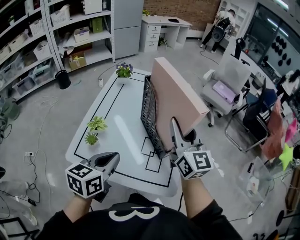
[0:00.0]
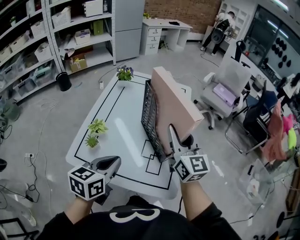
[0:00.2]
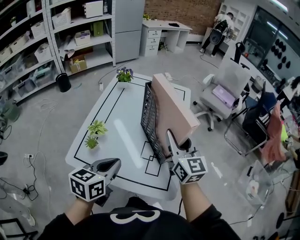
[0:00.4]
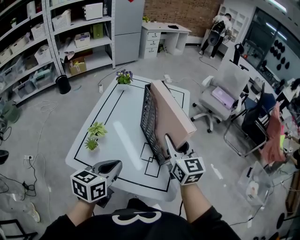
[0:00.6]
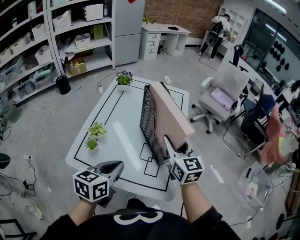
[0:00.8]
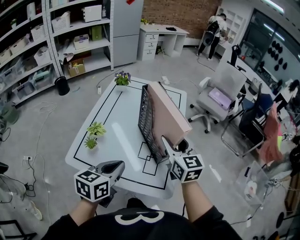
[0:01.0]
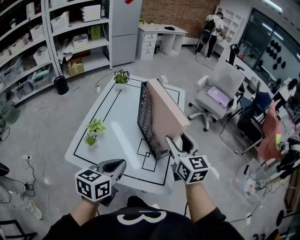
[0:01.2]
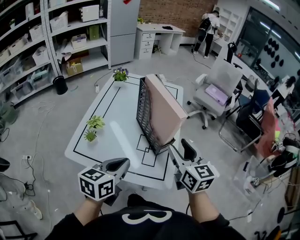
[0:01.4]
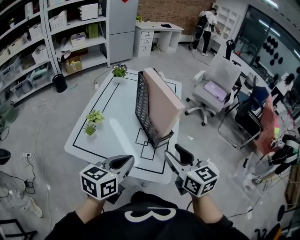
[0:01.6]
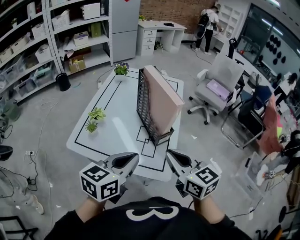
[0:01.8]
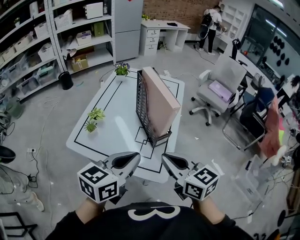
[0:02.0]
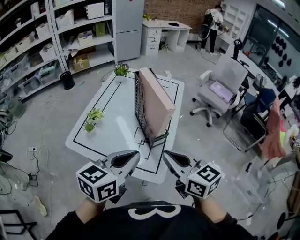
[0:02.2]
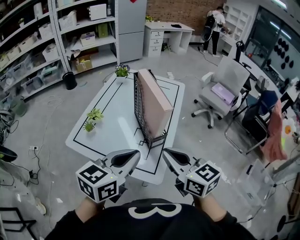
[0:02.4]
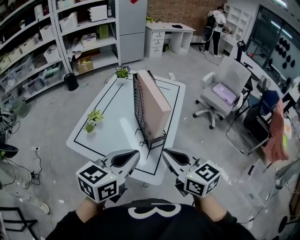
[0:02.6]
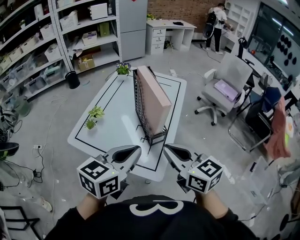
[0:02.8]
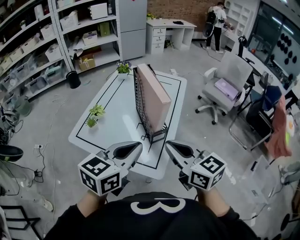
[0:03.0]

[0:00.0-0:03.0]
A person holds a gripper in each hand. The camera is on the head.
0:00.0 to 0:01.6: The left gripper moves to the right and backward, roughly 10 cm; the right gripper travels backward by some 15 cm, rotates roughly 30 degrees, and opens.
0:01.6 to 0:03.0: The left gripper heads to the right and upward, covering some 10 cm, while the right gripper goes about 5 cm upward, and closes its fingers.

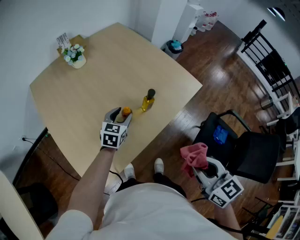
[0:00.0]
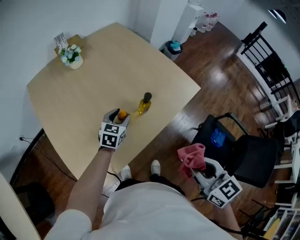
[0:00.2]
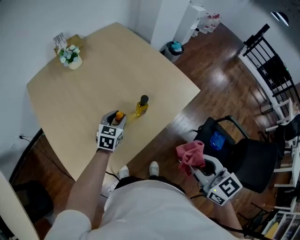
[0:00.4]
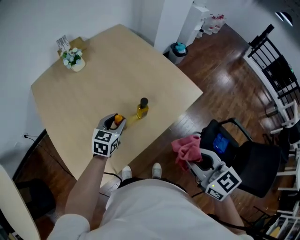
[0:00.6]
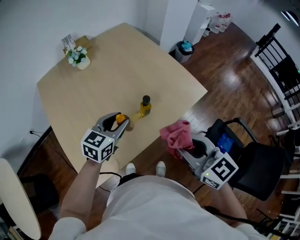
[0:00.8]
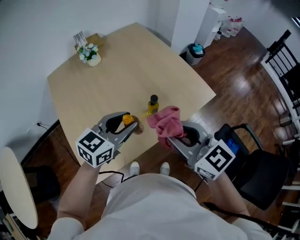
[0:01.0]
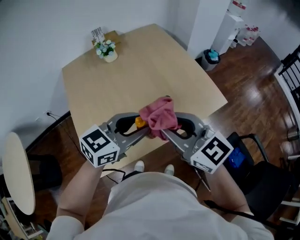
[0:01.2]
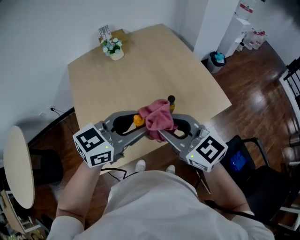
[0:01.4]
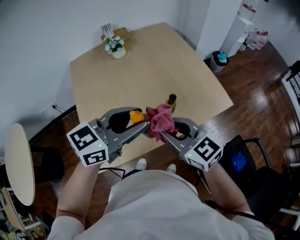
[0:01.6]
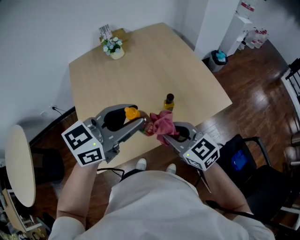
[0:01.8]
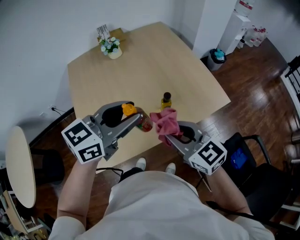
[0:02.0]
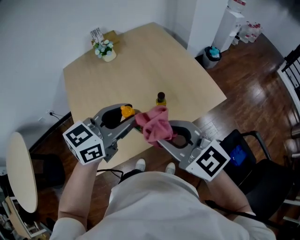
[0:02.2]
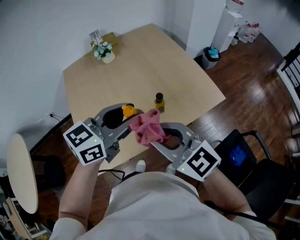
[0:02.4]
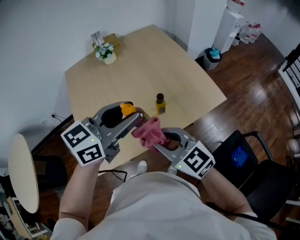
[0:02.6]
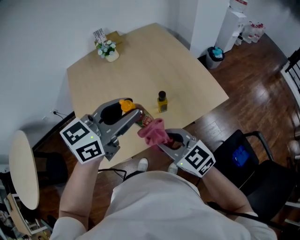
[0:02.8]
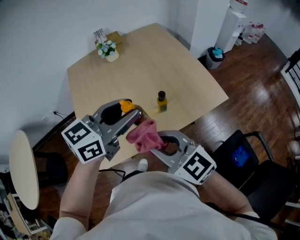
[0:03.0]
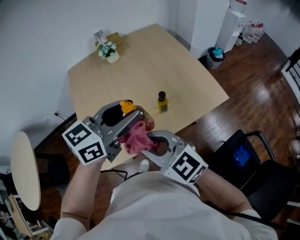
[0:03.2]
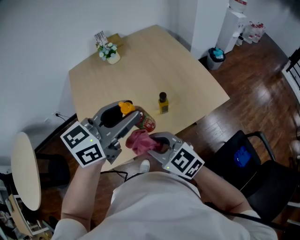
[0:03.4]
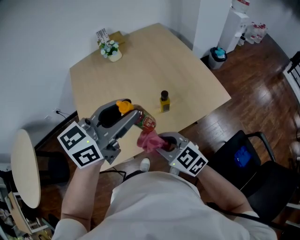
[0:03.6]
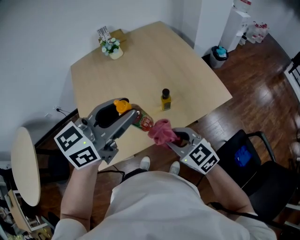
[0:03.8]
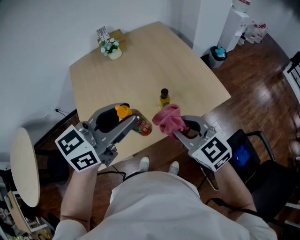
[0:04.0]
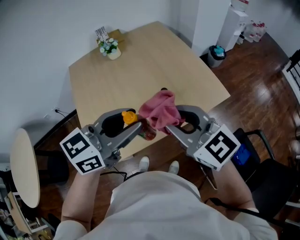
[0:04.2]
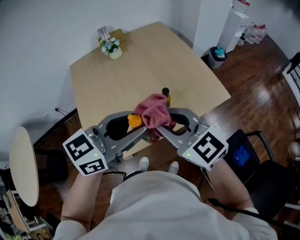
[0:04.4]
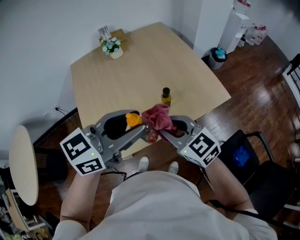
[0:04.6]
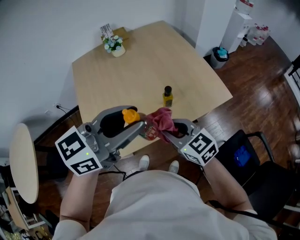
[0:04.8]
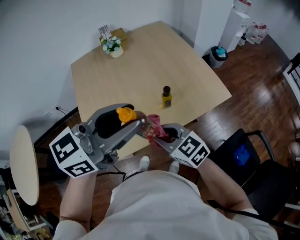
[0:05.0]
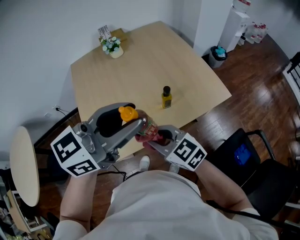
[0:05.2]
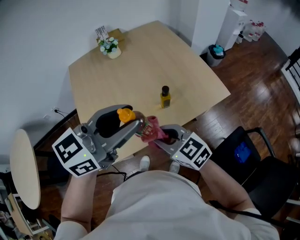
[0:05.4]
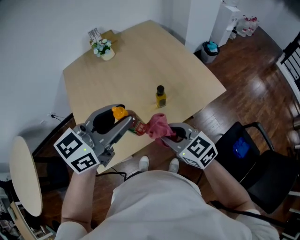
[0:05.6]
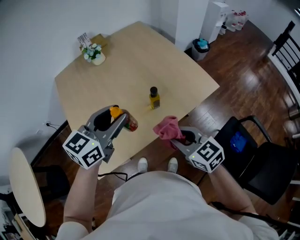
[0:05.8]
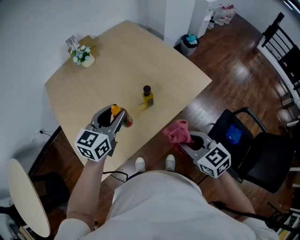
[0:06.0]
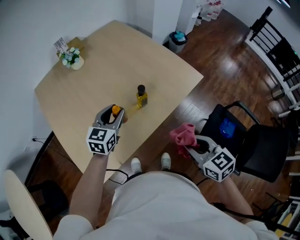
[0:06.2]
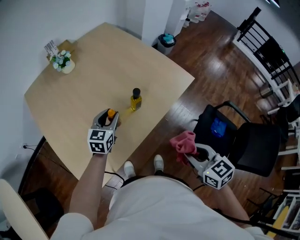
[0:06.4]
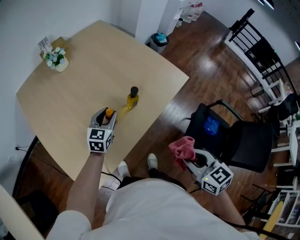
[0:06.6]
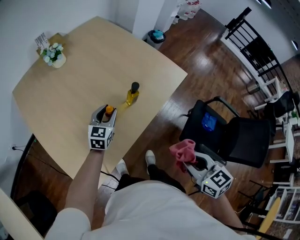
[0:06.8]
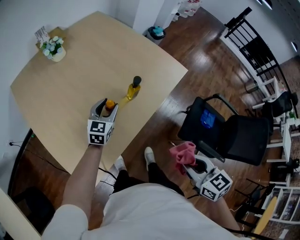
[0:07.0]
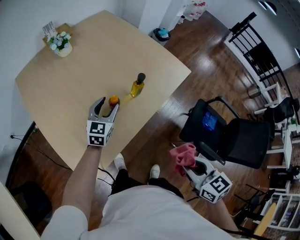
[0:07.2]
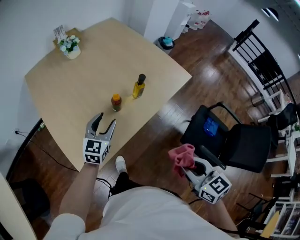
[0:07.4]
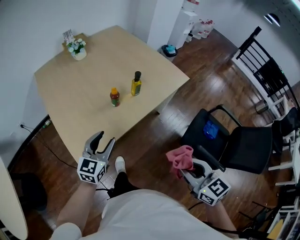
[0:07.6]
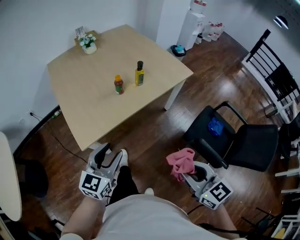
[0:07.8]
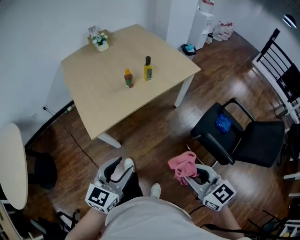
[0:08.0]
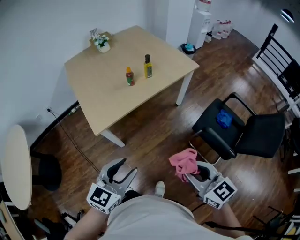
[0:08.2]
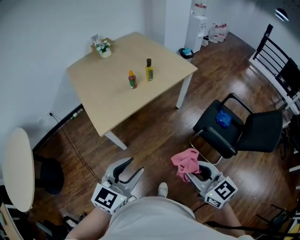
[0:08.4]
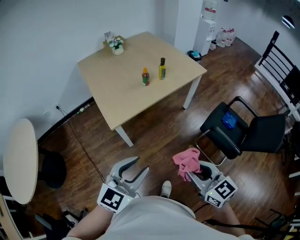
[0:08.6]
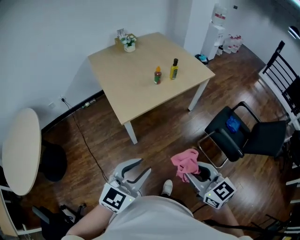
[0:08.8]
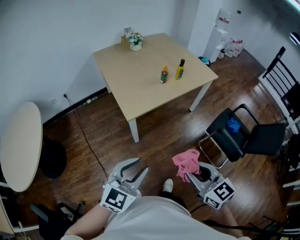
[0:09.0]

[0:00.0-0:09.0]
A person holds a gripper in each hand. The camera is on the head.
0:00.0 to 0:01.6: The left gripper moves upward and backward, approximately 30 cm, and turns by roughly 20 degrees. Meanwhile the right gripper goes about 20 cm forward and to the left, and turns by approximately 40 degrees.
0:01.6 to 0:03.0: The right gripper goes up and down, approximately 10 cm each way, reversing 3 times.
0:03.0 to 0:04.4: The left gripper travels backward by roughly 5 cm. Meanwhile the right gripper moves about 10 cm downward and comes back.
0:04.4 to 0:06.0: The right gripper is displaced downward and to the right by some 15 cm, and changes its angle by approximately 30 degrees; the left gripper shifts approximately 20 cm downward, forward and to the left.
0:06.0 to 0:07.6: Both grippers move backward, some 20 cm.
0:07.6 to 0:09.0: The right gripper shifts roughly 35 cm backward and to the left; the left gripper heads backward, covering some 40 cm.

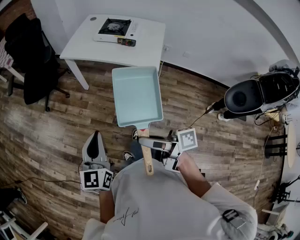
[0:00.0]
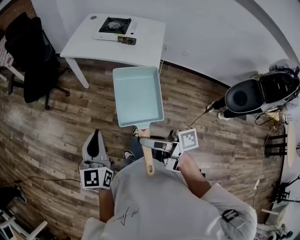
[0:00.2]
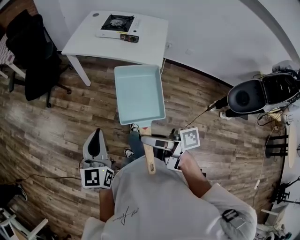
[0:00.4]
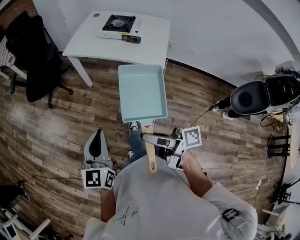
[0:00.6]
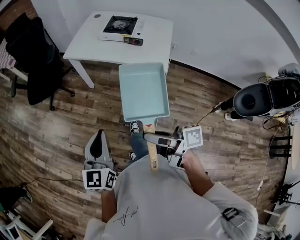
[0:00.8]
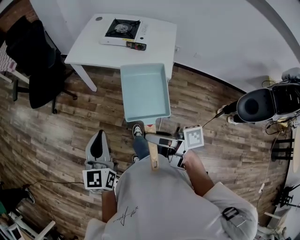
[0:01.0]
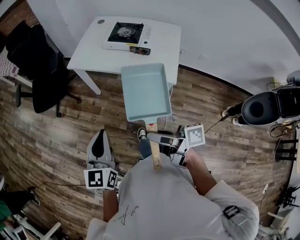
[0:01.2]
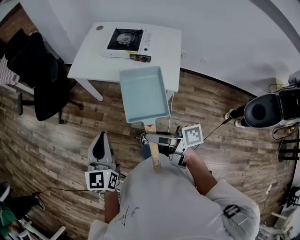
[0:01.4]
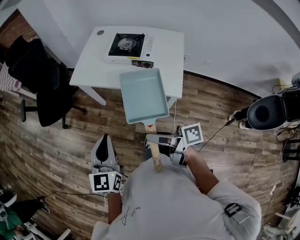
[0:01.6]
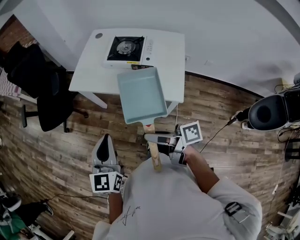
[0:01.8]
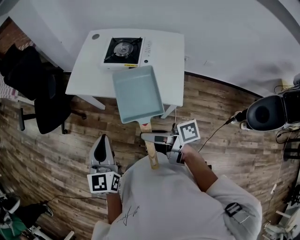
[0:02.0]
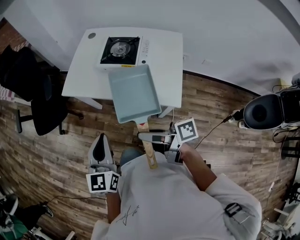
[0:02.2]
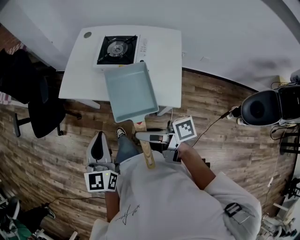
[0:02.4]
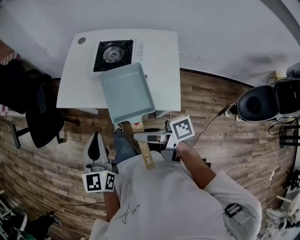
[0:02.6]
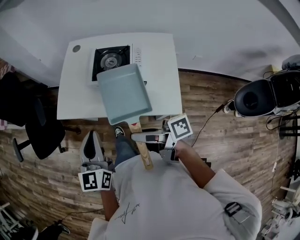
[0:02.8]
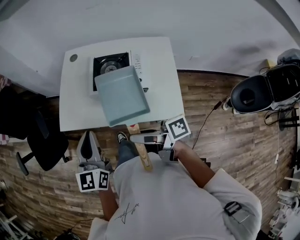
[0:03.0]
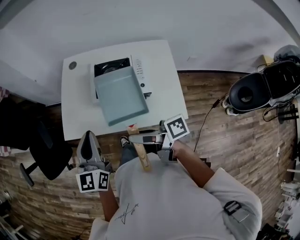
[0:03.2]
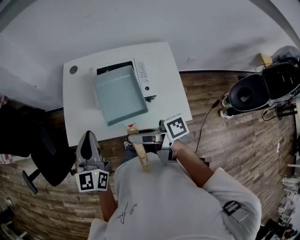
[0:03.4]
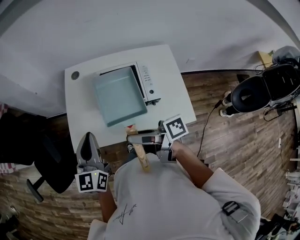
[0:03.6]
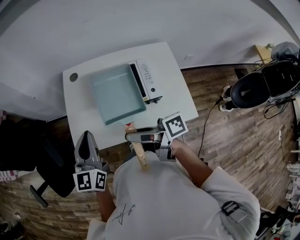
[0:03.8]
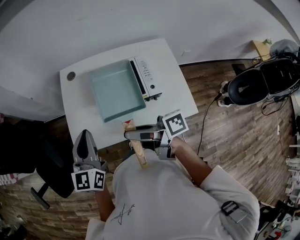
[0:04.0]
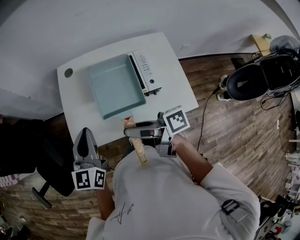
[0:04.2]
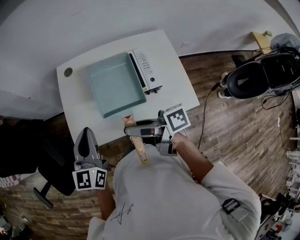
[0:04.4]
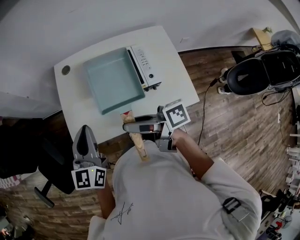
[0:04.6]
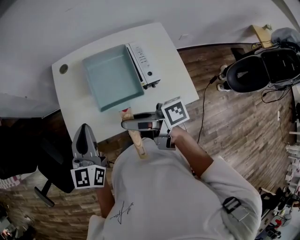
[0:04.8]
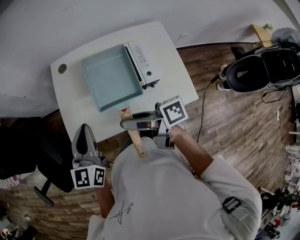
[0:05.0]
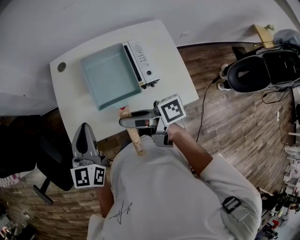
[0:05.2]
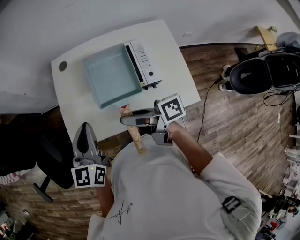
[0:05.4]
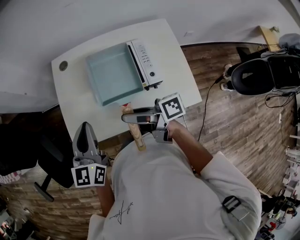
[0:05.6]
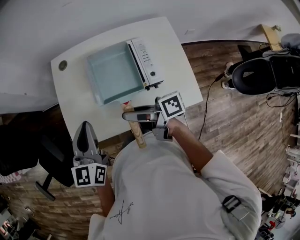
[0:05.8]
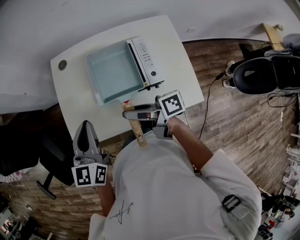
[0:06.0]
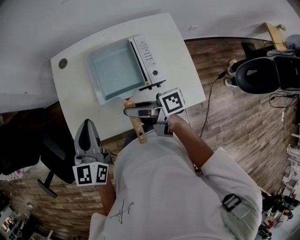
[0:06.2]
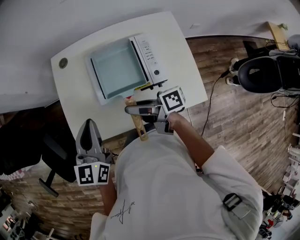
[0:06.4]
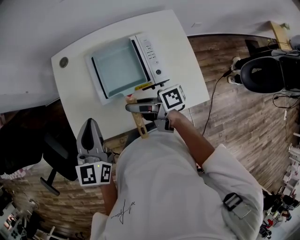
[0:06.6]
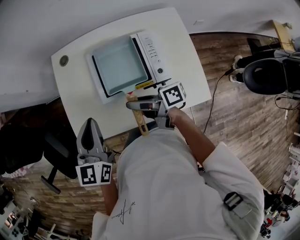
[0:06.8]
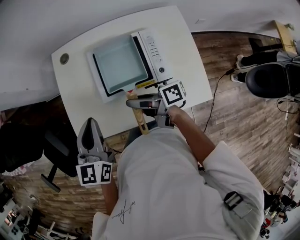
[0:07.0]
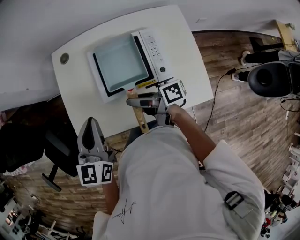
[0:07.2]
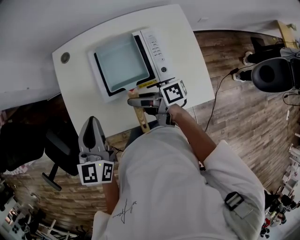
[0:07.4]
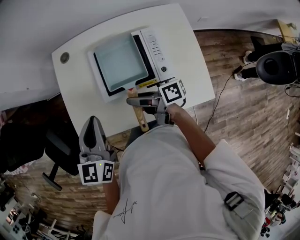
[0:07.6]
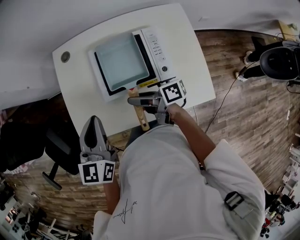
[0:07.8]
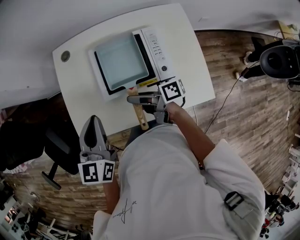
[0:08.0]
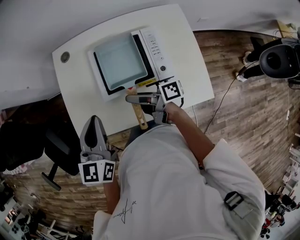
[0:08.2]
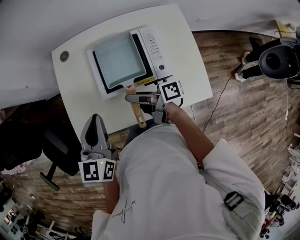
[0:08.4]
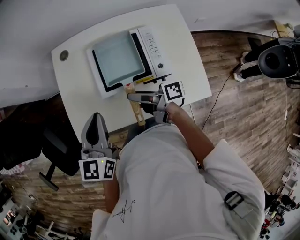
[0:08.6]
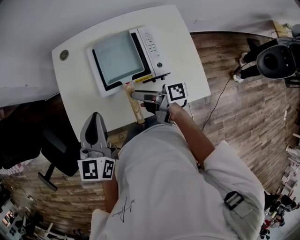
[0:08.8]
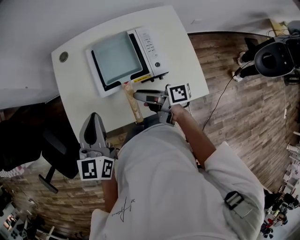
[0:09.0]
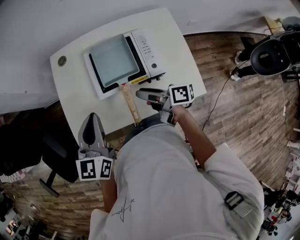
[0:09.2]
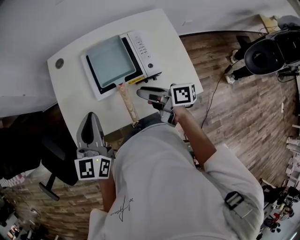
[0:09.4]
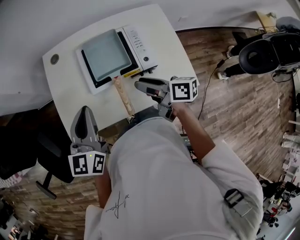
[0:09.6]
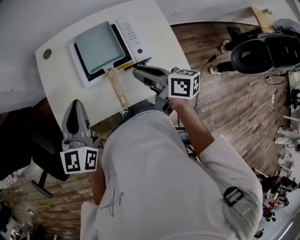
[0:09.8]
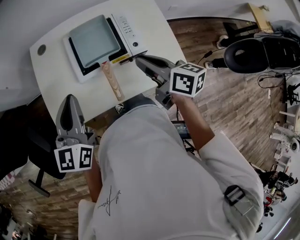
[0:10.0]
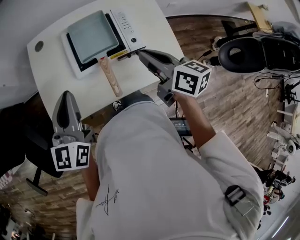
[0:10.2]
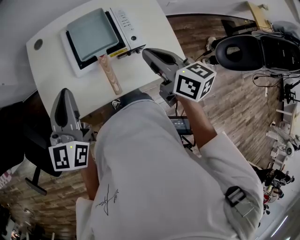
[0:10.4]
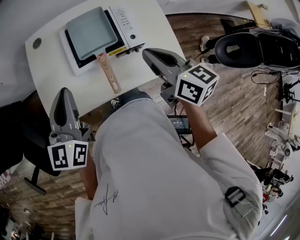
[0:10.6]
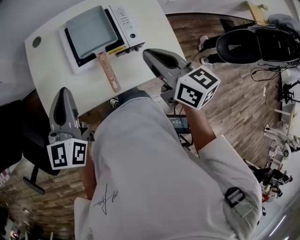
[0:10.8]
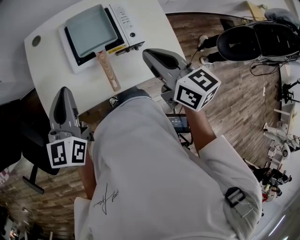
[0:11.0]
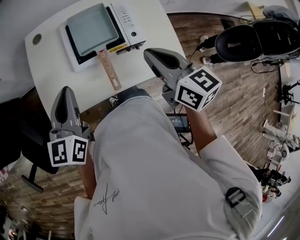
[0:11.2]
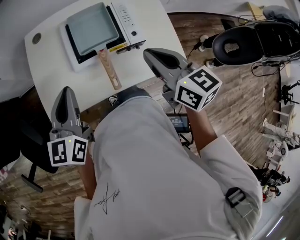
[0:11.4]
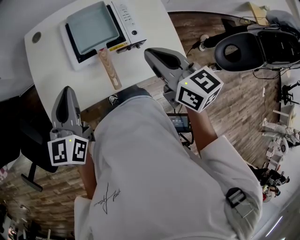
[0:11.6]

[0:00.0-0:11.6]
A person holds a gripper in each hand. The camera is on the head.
0:00.0 to 0:01.4: Both grippers travel together forward, some 20 cm.
0:01.4 to 0:02.8: The left gripper goes approximately 25 cm forward and to the right. The right gripper travels forward by some 20 cm.
0:02.8 to 0:04.4: The grippers both shift forward by approximately 20 cm.
0:04.4 to 0:05.8: The right gripper heads downward, covering approximately 5 cm.
0:05.8 to 0:07.2: The right gripper is displaced downward by about 5 cm.
0:07.2 to 0:08.8: There are only small adjustments of the grippers.
0:08.8 to 0:10.2: The right gripper travels upward and to the right by roughly 15 cm, rotates about 50 degrees, and closes up.
0:10.2 to 0:11.6: There are only small adjustments of the grippers.
